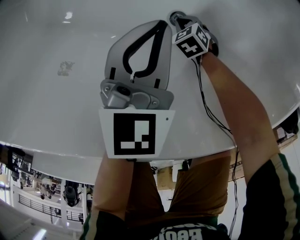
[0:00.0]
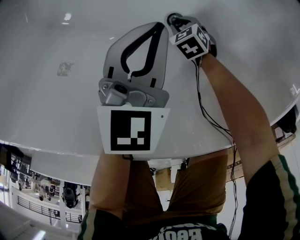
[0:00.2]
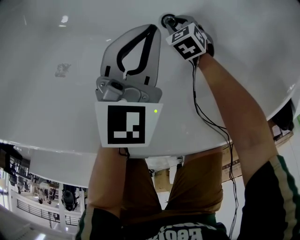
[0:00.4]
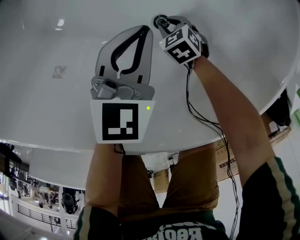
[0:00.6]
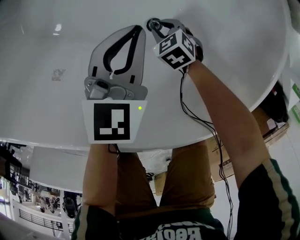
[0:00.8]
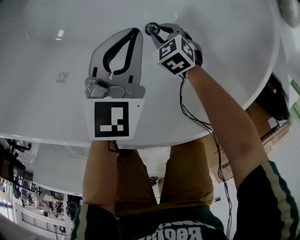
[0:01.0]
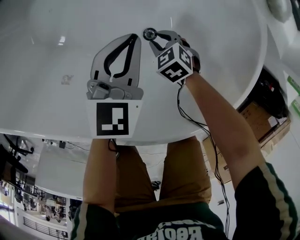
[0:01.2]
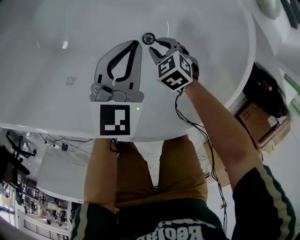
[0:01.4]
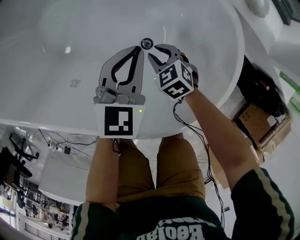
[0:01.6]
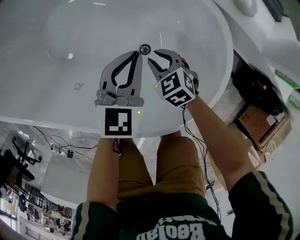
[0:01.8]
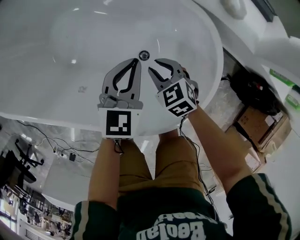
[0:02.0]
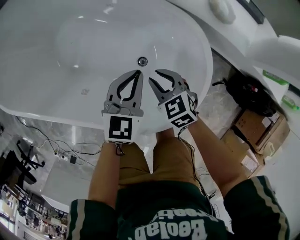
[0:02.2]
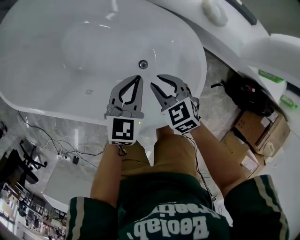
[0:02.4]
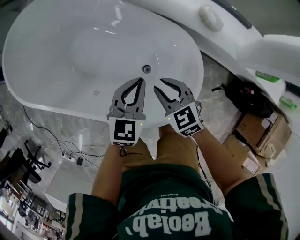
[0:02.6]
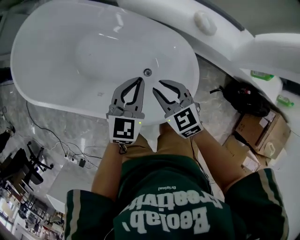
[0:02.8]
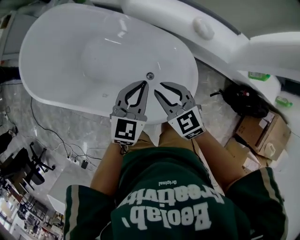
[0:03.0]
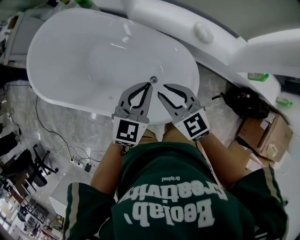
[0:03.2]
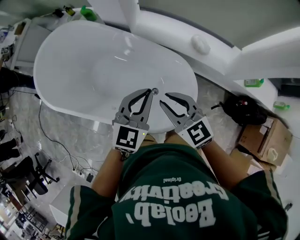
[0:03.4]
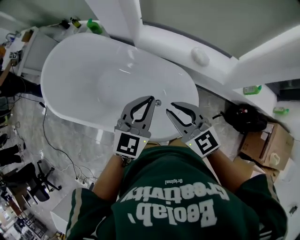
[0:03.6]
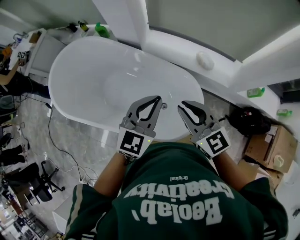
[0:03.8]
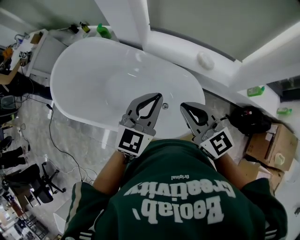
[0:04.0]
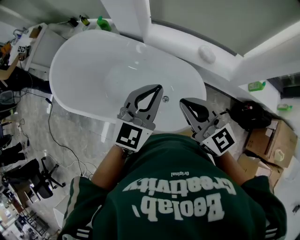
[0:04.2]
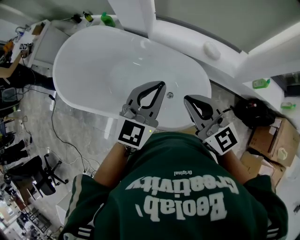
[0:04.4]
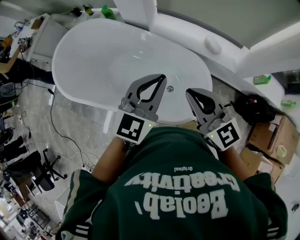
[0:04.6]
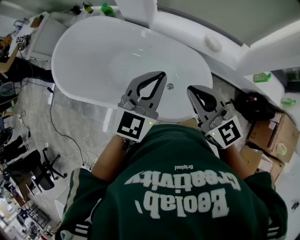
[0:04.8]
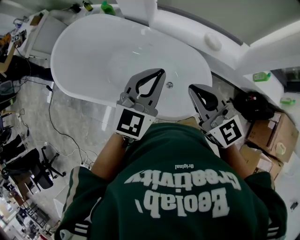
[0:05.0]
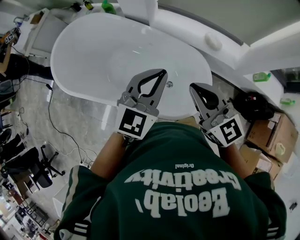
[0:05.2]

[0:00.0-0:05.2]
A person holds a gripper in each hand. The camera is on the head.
0:00.0 to 0:01.8: The right gripper travels upward by about 30 cm, swivels roughly 20 degrees, and opens its fingers; the left gripper goes some 15 cm upward.
0:01.8 to 0:03.4: Both grippers move upward, roughly 40 cm. The right gripper angles its fingers upward, by some 30 degrees.
0:03.4 to 0:05.2: The left gripper goes some 10 cm upward and to the left, while the right gripper shifts some 15 cm upward and backward, and closes up.

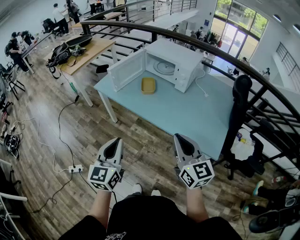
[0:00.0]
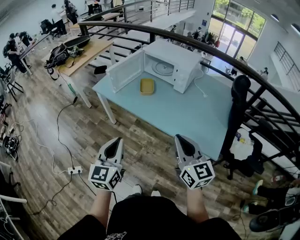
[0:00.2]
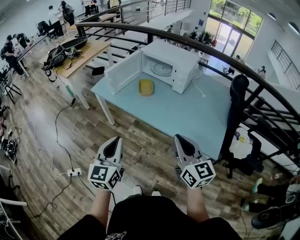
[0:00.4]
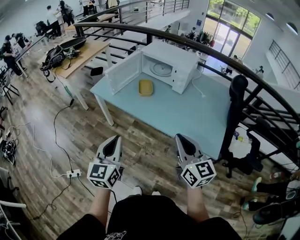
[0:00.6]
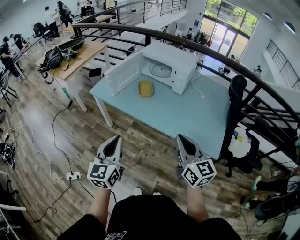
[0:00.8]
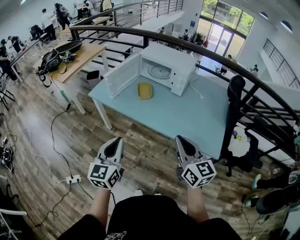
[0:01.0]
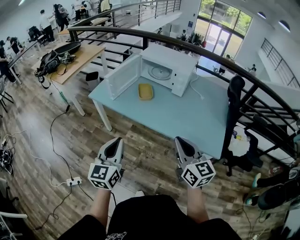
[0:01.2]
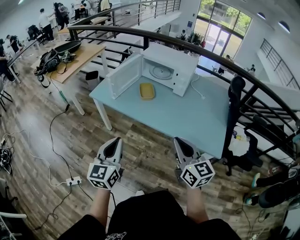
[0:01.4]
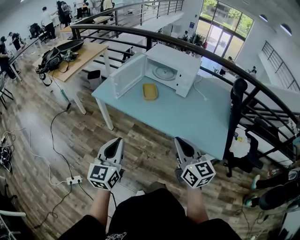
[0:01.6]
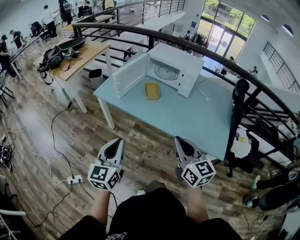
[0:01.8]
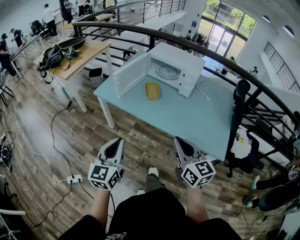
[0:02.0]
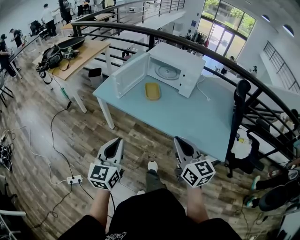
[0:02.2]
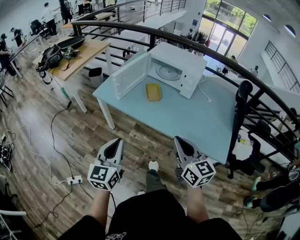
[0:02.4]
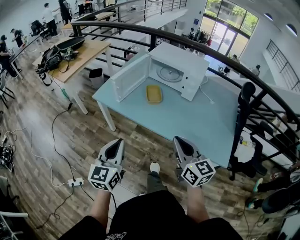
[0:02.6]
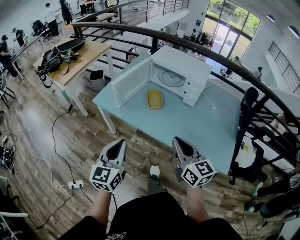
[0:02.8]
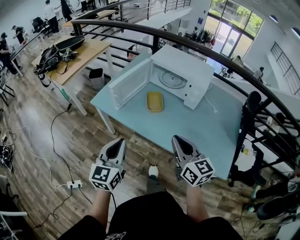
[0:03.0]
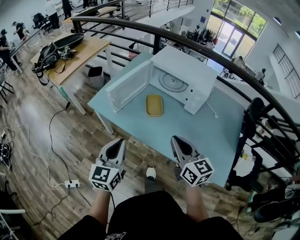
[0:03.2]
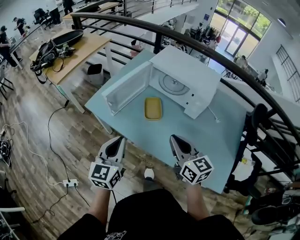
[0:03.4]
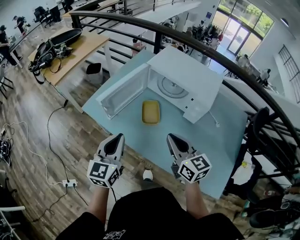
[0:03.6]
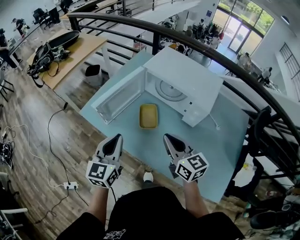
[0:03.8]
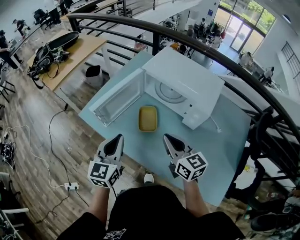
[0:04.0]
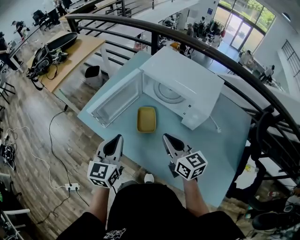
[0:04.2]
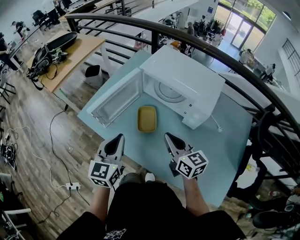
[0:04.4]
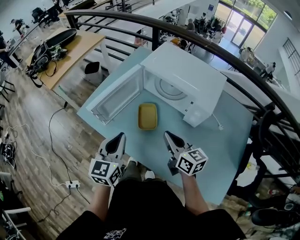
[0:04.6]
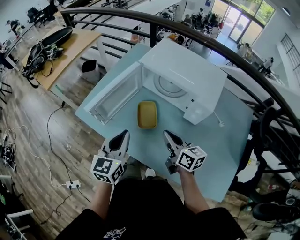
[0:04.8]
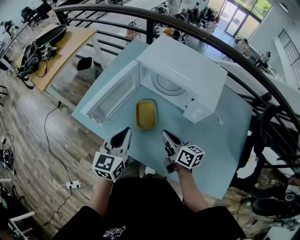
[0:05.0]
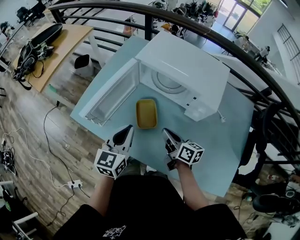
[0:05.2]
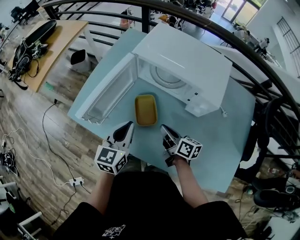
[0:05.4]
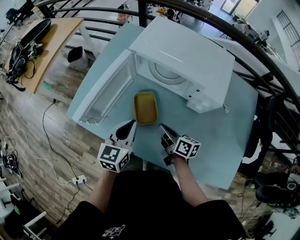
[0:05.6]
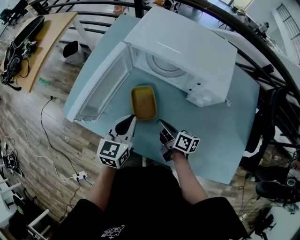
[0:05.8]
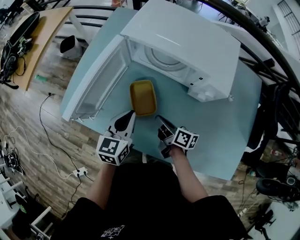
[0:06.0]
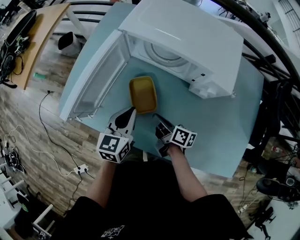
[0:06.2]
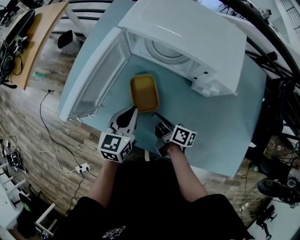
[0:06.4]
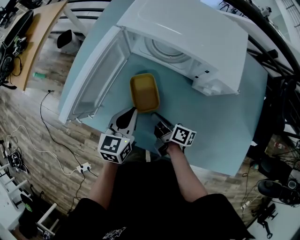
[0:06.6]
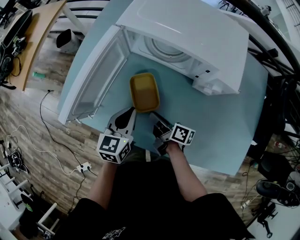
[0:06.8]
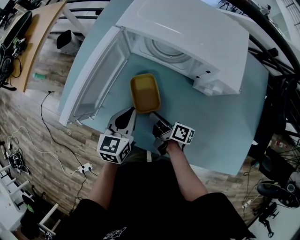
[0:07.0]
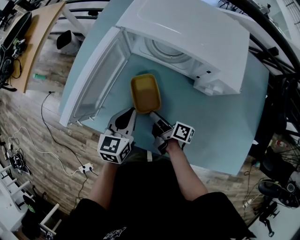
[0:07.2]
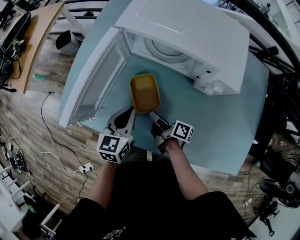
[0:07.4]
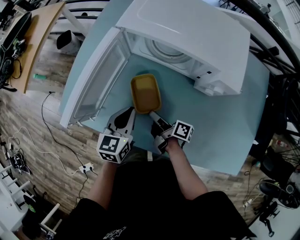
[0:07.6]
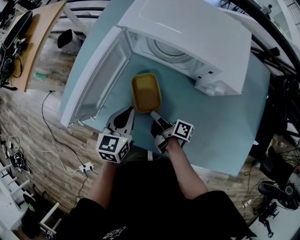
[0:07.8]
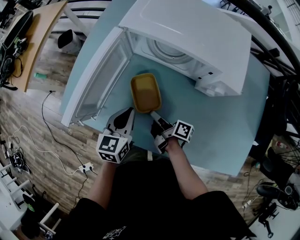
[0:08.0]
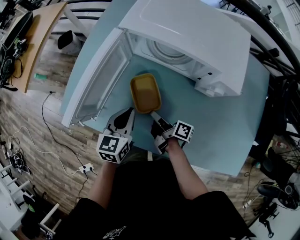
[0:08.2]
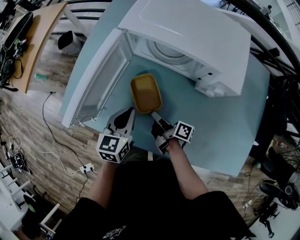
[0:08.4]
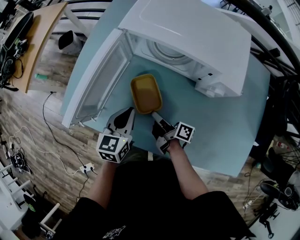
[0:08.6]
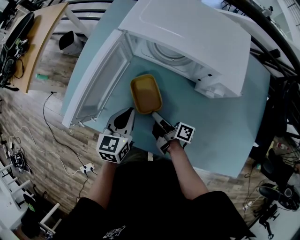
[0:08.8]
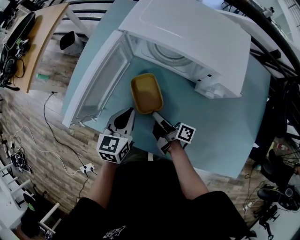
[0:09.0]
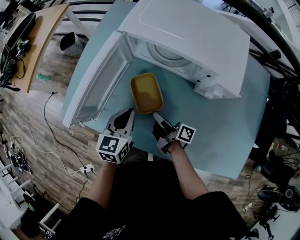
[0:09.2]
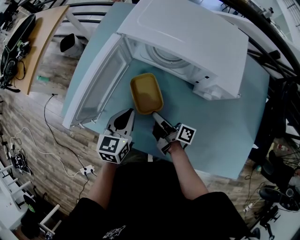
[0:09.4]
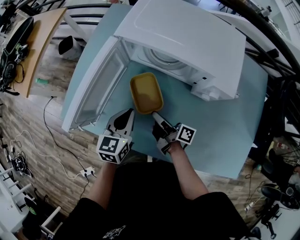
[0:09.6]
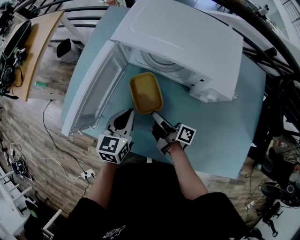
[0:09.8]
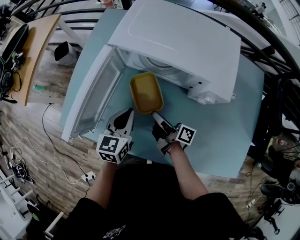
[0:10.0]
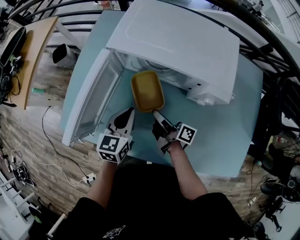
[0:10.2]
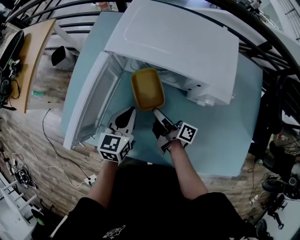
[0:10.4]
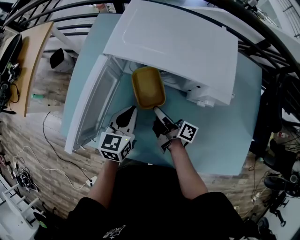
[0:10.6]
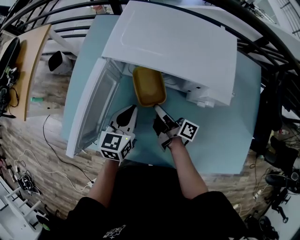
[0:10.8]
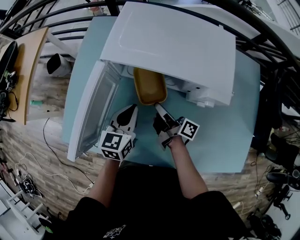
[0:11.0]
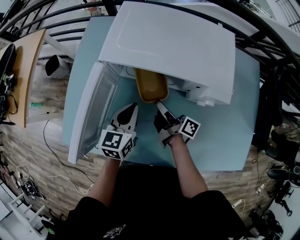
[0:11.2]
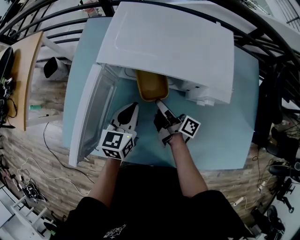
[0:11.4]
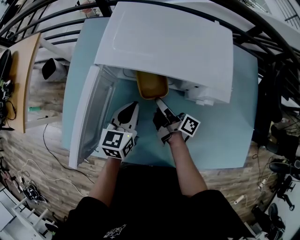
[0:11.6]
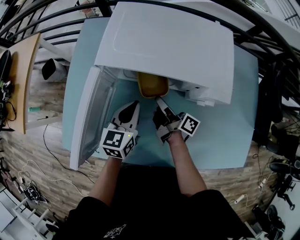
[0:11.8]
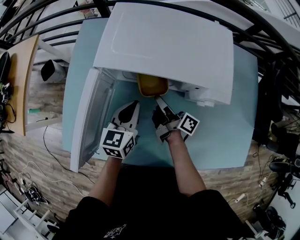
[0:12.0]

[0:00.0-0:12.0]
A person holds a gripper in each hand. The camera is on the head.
0:00.0 to 0:01.6: The right gripper shifts some 10 cm to the left. The left gripper is displaced to the left and forward by roughly 10 cm.
0:01.6 to 0:03.0: Both grippers travel together forward, roughly 15 cm.
0:03.0 to 0:04.4: The right gripper is displaced forward by some 20 cm; the left gripper shifts some 25 cm forward and to the right.
0:04.4 to 0:06.0: The right gripper shifts roughly 20 cm downward, and twists some 50 degrees clockwise, seen from behind. Meanwhile the left gripper travels downward and forward by about 20 cm, and swivels about 20 degrees.
0:06.0 to 0:07.6: The right gripper ends up some 5 cm from where it was, and rotates some 20 degrees.
0:07.6 to 0:09.0: The grippers move only a little.
0:09.0 to 0:10.4: The grippers both shift forward by roughly 5 cm.
0:10.4 to 0:12.0: Both grippers travel together forward, some 5 cm.

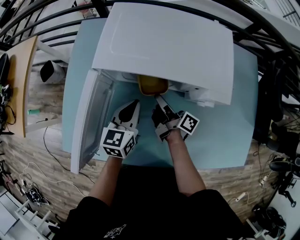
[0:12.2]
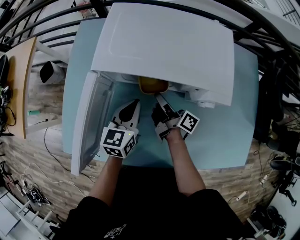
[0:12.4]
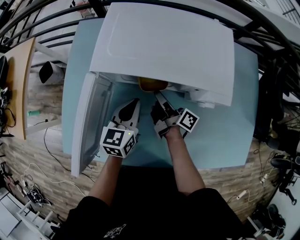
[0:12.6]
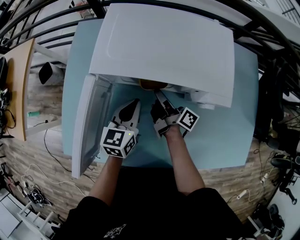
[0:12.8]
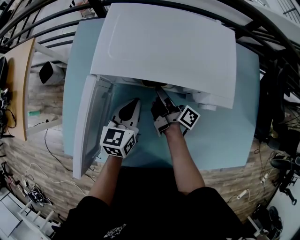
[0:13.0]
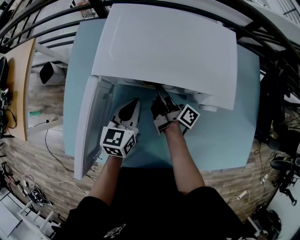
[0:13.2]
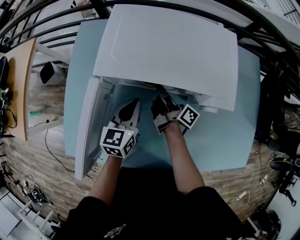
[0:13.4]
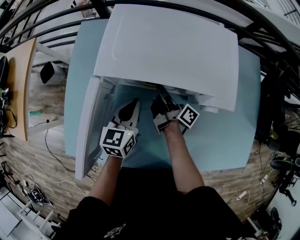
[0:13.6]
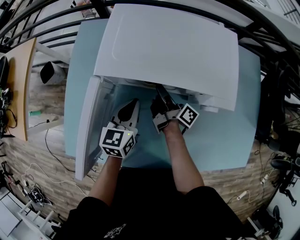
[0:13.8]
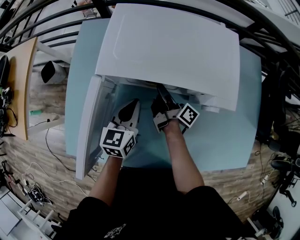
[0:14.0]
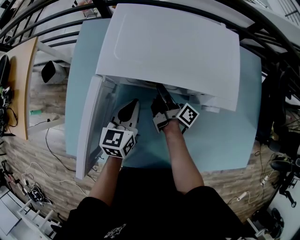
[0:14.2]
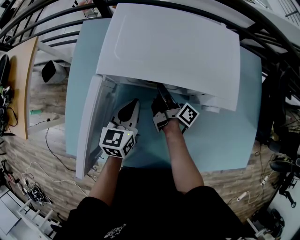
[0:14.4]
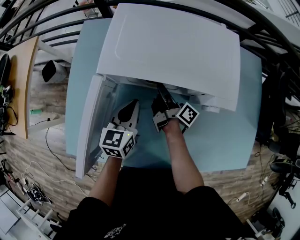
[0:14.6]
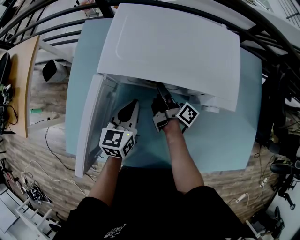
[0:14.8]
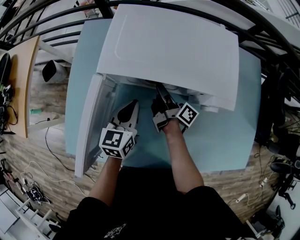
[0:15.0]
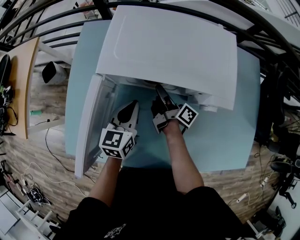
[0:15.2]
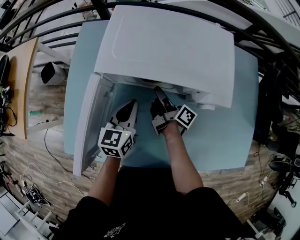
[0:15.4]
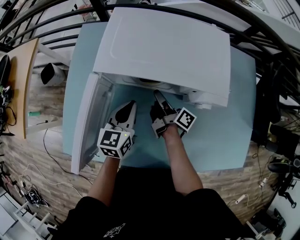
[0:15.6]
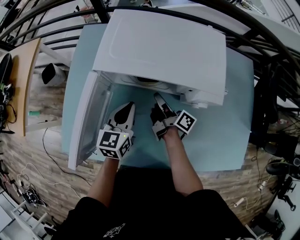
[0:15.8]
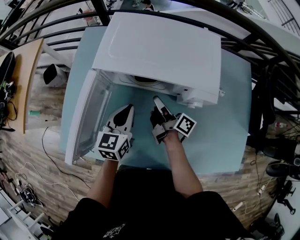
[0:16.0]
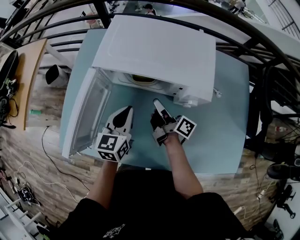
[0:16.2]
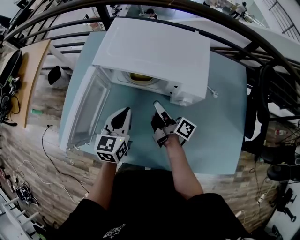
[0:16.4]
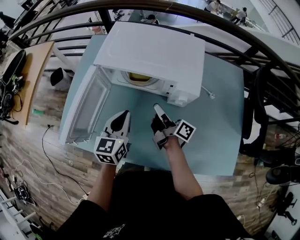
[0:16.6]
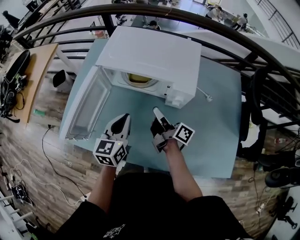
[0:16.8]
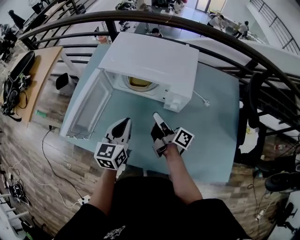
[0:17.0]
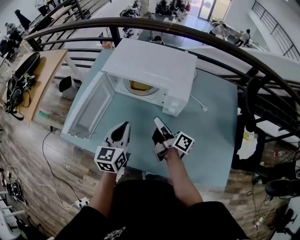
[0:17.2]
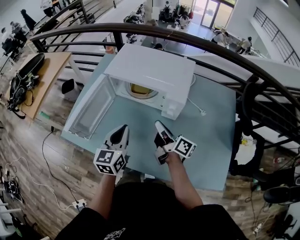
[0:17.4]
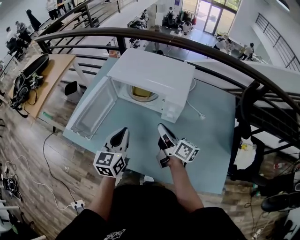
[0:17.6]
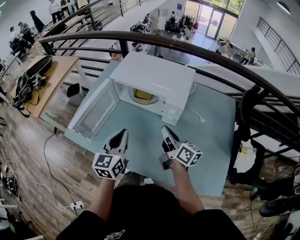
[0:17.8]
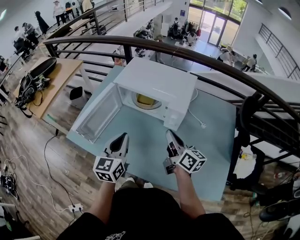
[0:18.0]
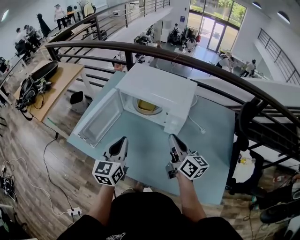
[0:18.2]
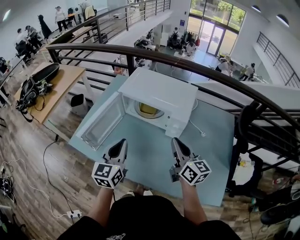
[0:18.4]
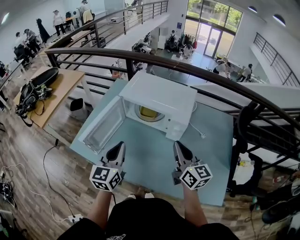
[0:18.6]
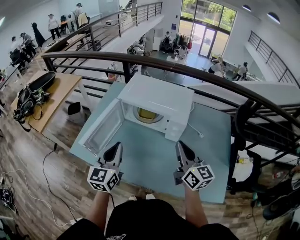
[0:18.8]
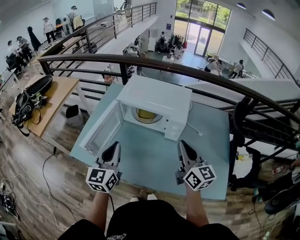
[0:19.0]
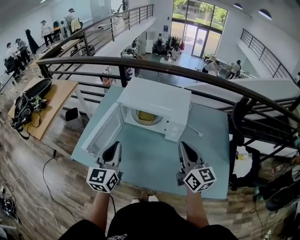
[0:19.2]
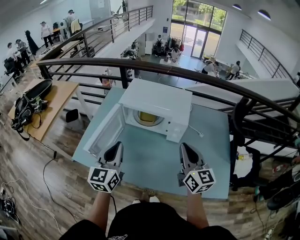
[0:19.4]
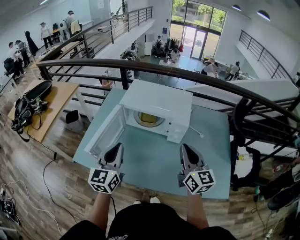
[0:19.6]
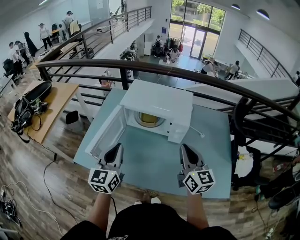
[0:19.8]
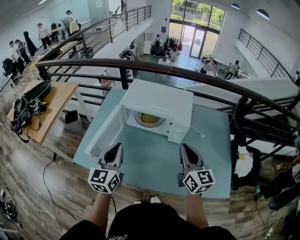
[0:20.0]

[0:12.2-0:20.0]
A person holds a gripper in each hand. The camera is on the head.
0:12.2 to 0:13.8: The right gripper goes some 5 cm forward.
0:13.8 to 0:15.4: There are only small adjustments of the grippers.
0:15.4 to 0:16.8: The two grippers go some 15 cm backward, upward and to the right. The right gripper closes up.
0:16.8 to 0:18.4: The left gripper shifts roughly 15 cm backward and upward. Meanwhile the right gripper moves upward and backward, some 20 cm, and rotates around the line of its fingers by about 50 degrees, counterclockwise from behind.
0:18.4 to 0:20.0: The left gripper travels to the left by some 5 cm; the right gripper goes some 5 cm upward, and turns by some 20 degrees.
